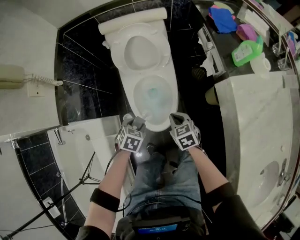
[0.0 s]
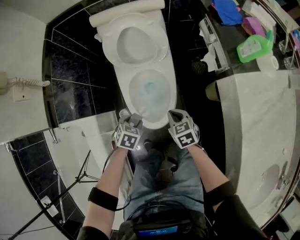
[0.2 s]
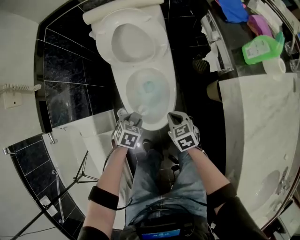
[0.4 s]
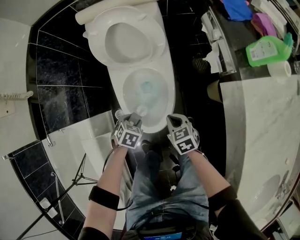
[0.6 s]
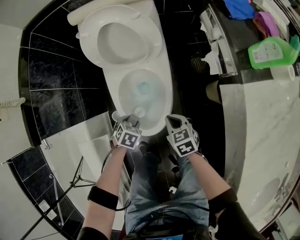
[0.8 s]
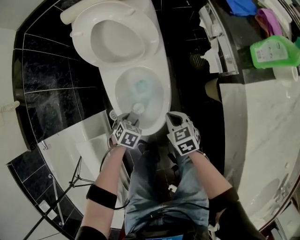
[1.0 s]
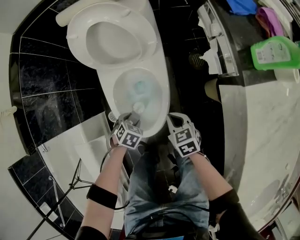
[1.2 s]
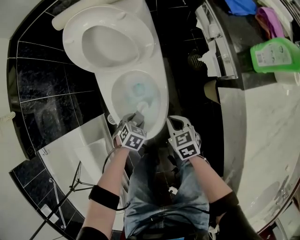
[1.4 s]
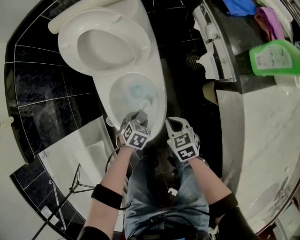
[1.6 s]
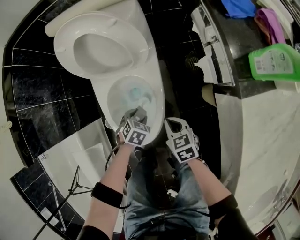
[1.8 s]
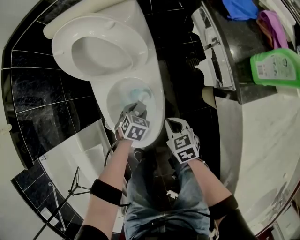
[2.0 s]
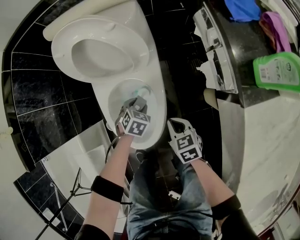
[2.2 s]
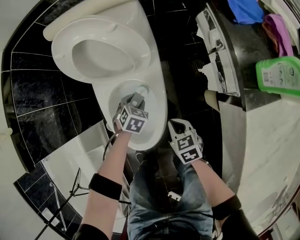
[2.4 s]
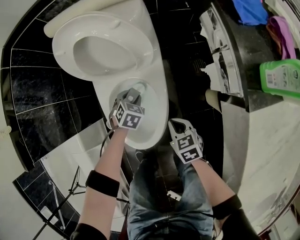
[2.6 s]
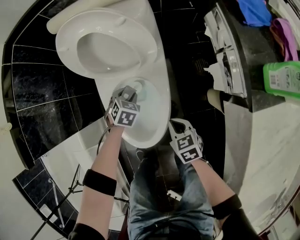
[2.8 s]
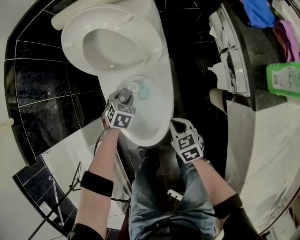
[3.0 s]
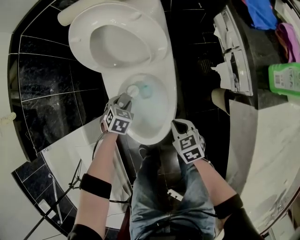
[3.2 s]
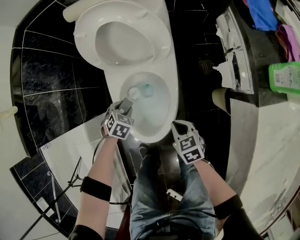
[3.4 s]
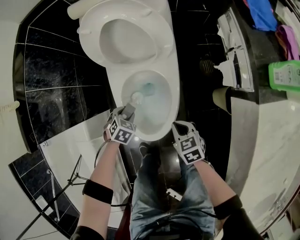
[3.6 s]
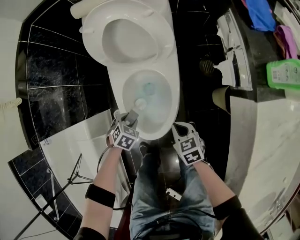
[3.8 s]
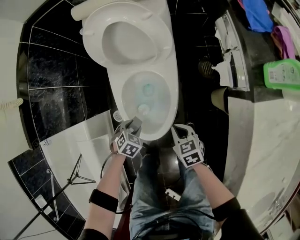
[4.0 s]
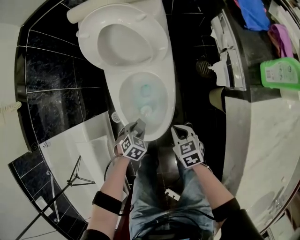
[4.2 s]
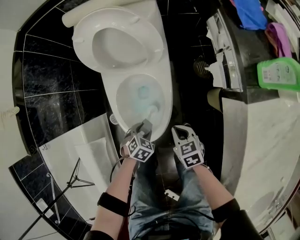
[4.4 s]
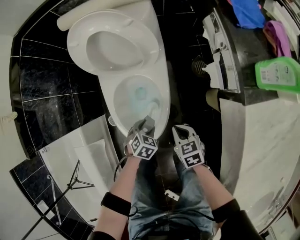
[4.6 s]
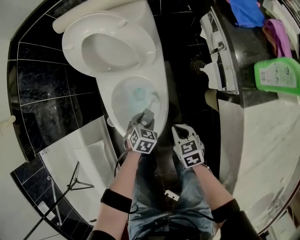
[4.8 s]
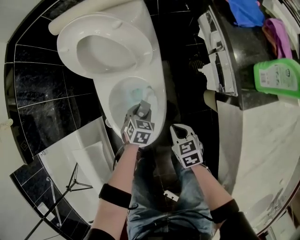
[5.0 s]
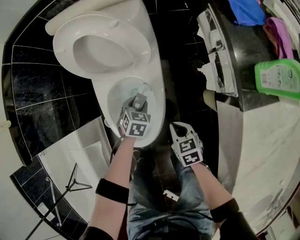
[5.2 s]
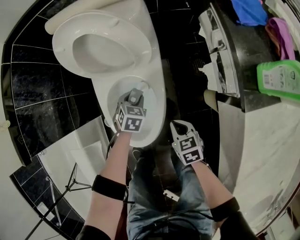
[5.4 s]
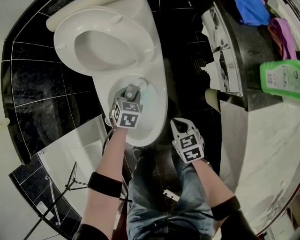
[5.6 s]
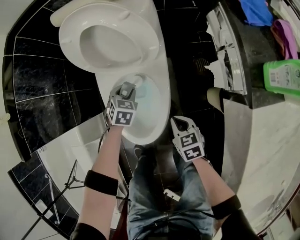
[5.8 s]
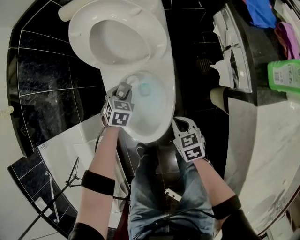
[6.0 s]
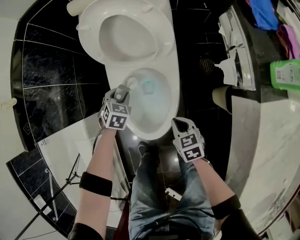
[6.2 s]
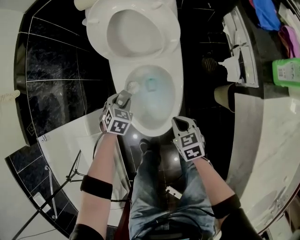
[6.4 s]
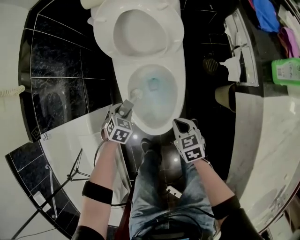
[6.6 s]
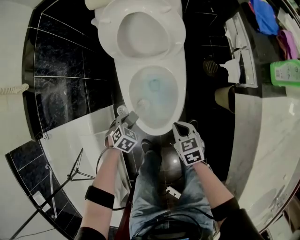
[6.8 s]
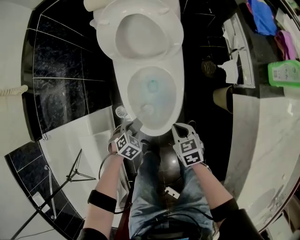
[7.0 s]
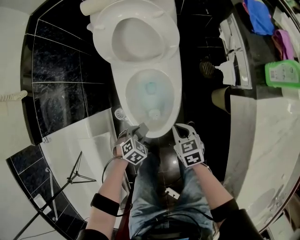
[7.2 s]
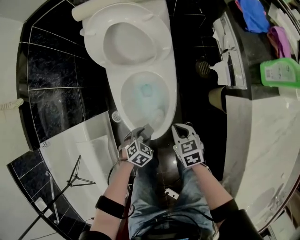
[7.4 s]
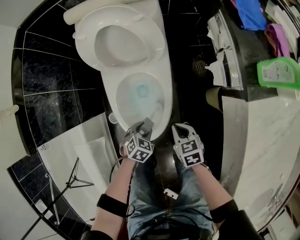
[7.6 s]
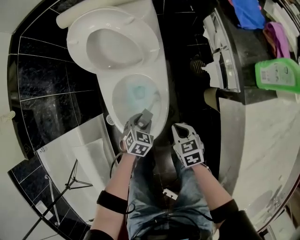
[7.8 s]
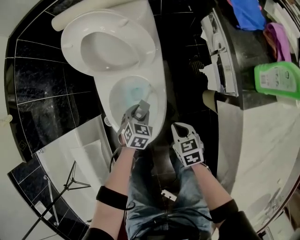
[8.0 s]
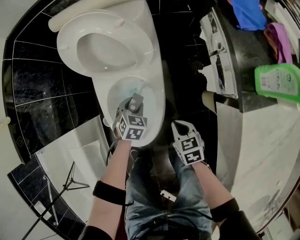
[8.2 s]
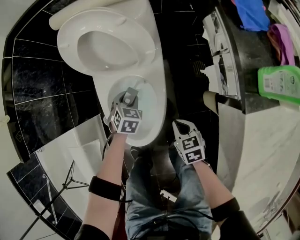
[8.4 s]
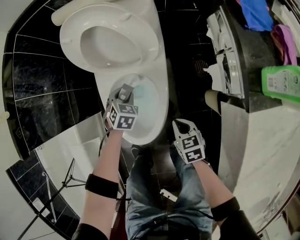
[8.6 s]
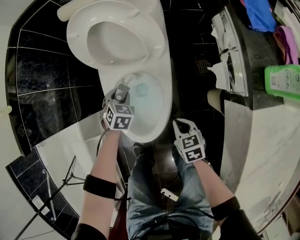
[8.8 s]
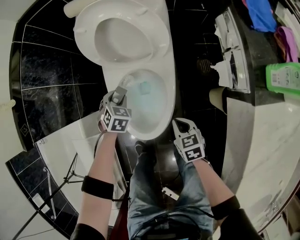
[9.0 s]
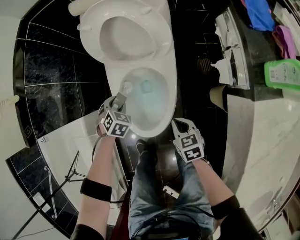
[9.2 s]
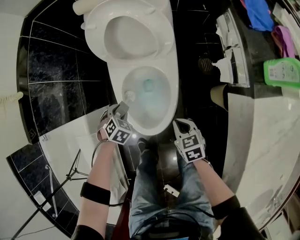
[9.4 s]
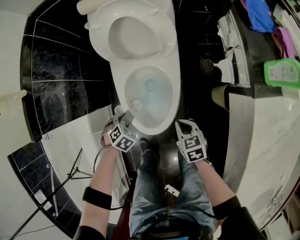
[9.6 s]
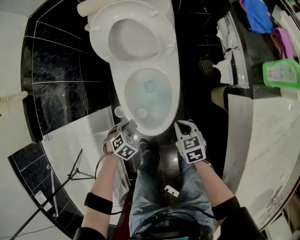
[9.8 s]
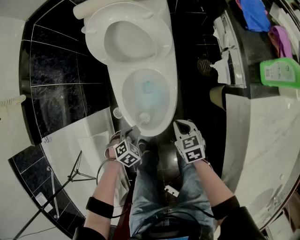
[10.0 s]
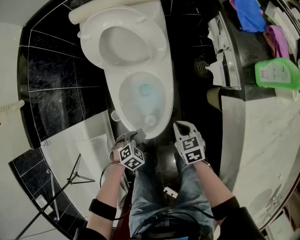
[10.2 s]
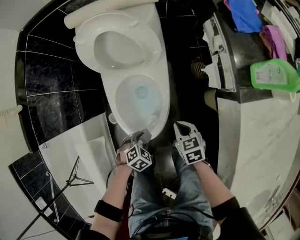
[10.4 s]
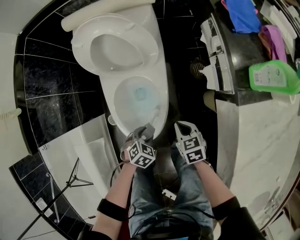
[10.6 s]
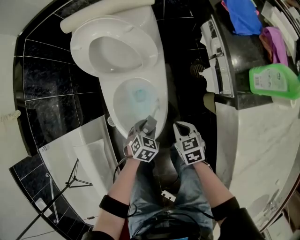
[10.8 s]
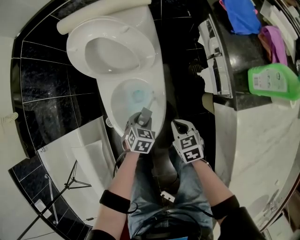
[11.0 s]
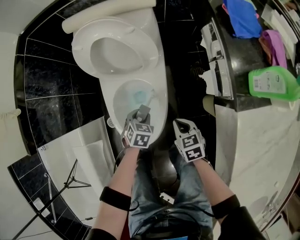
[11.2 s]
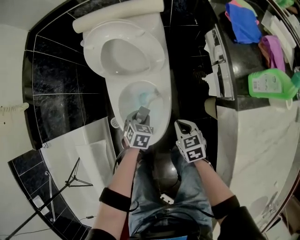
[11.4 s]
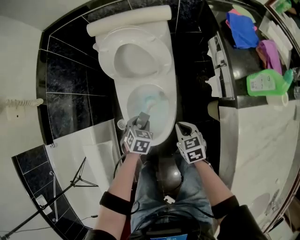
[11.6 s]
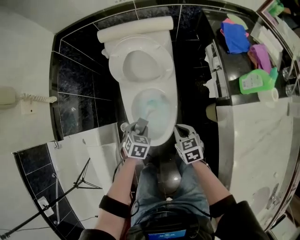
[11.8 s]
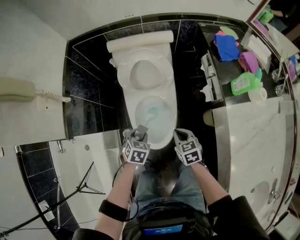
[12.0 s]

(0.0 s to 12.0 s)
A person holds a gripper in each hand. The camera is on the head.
0.0 s - 1.6 s: Both grippers move downward, approximately 20 cm.
1.6 s - 3.0 s: The left gripper is displaced forward and to the left by about 15 cm.
3.0 s - 4.4 s: The left gripper shifts by roughly 20 cm, while the right gripper moves roughly 5 cm.
4.4 s - 6.0 s: The left gripper moves forward, about 20 cm.
6.0 s - 7.6 s: The left gripper ends up about 20 cm from where it was.
7.6 s - 9.0 s: The left gripper ends up some 20 cm from where it was, and turns by roughly 20 degrees.
9.0 s - 10.4 s: The left gripper shifts by some 25 cm, and rotates some 30 degrees.
10.4 s - 12.0 s: The left gripper moves upward, forward and to the left, roughly 25 cm, and changes its angle by about 30 degrees, while the right gripper heads upward and to the left, covering some 15 cm.

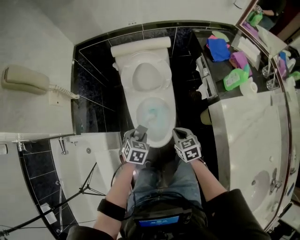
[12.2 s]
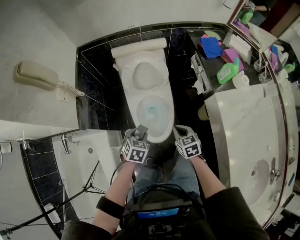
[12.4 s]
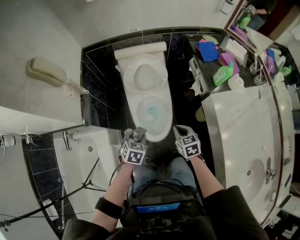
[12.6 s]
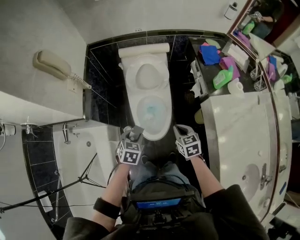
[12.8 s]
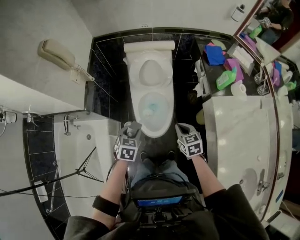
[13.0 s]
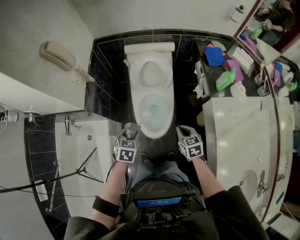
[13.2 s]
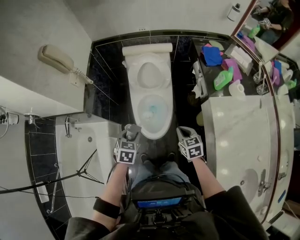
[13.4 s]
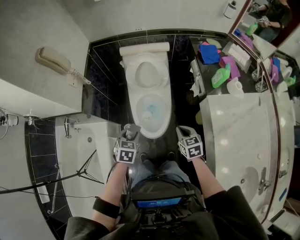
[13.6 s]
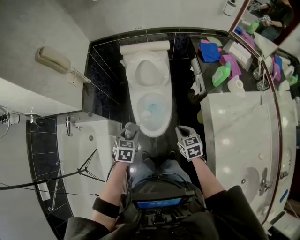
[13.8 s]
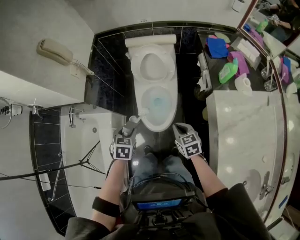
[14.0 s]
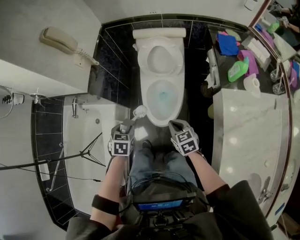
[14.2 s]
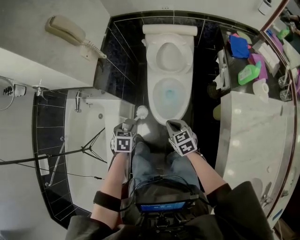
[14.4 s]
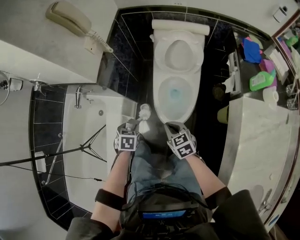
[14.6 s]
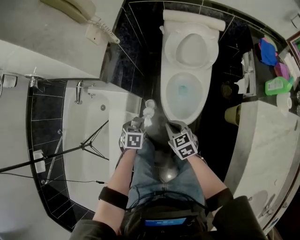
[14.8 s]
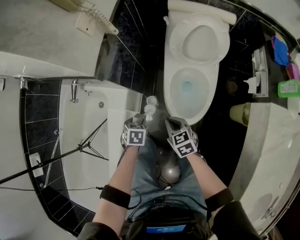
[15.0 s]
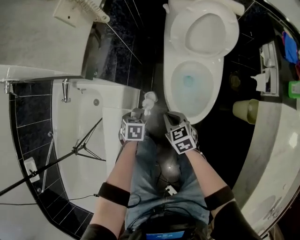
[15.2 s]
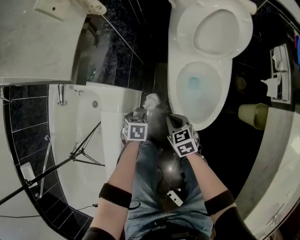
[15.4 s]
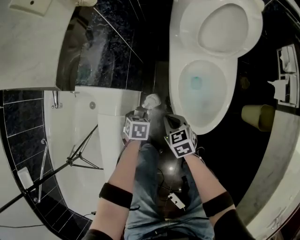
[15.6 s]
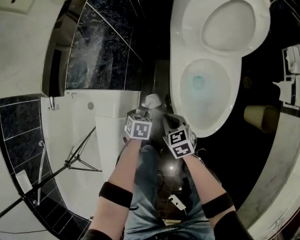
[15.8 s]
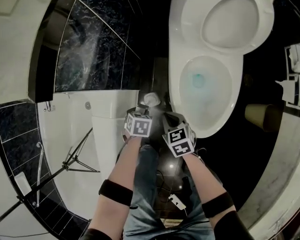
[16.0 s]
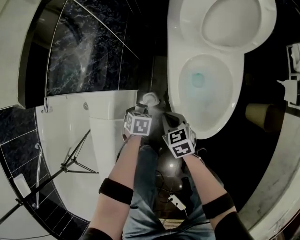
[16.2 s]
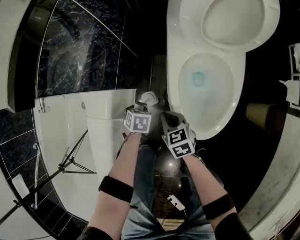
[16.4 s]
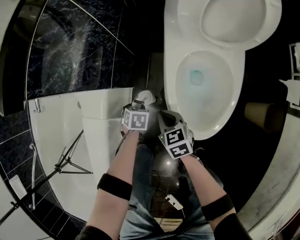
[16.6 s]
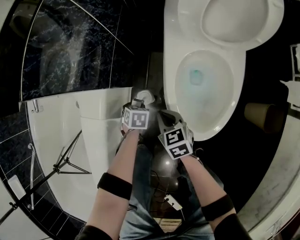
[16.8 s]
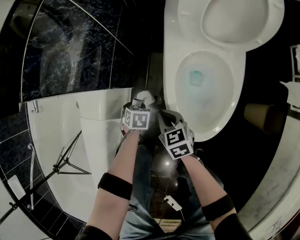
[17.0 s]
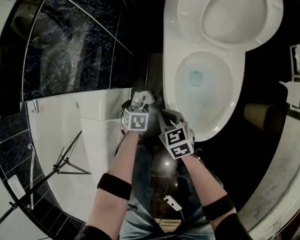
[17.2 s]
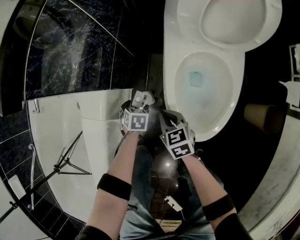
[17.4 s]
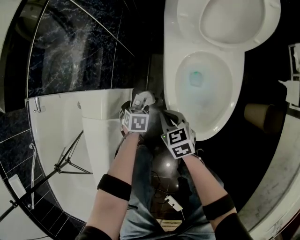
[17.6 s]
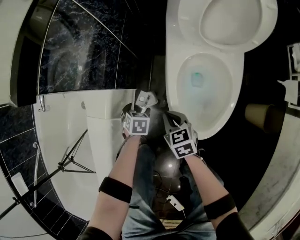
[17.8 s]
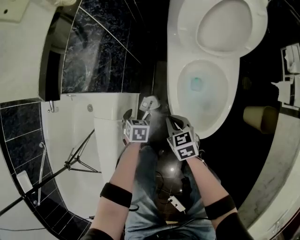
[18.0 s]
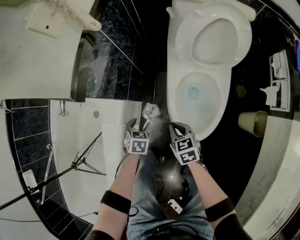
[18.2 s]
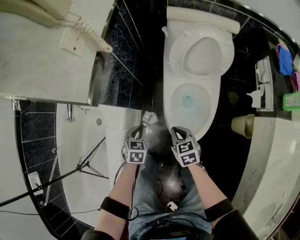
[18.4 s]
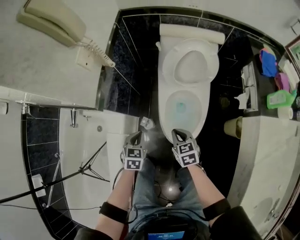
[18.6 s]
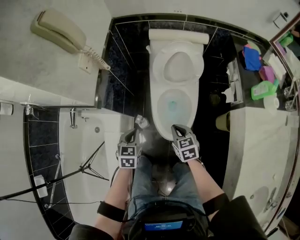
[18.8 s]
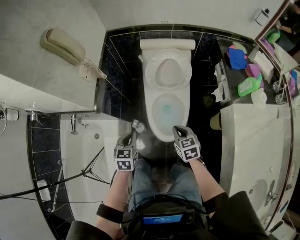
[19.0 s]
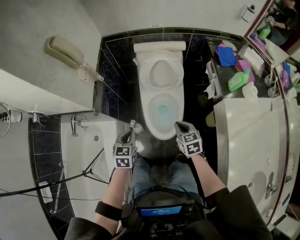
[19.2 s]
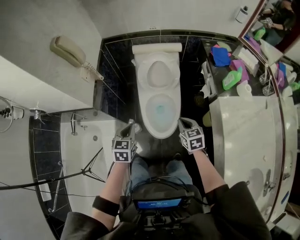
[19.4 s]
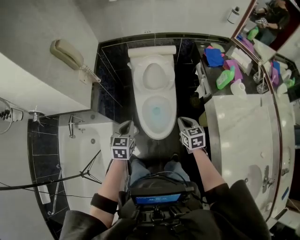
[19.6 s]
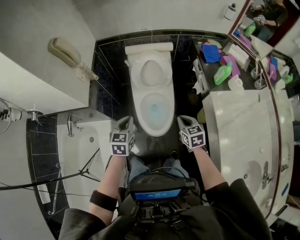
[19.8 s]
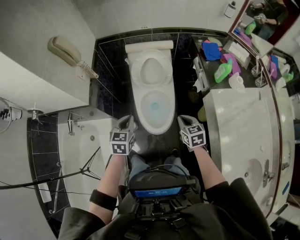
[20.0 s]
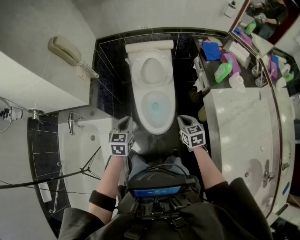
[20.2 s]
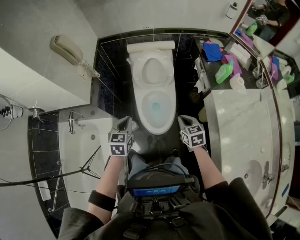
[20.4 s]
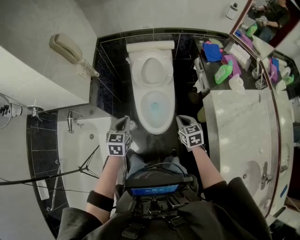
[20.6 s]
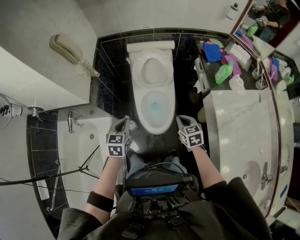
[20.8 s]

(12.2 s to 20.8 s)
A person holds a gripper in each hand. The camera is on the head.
12.2 s - 13.6 s: The right gripper travels upward, backward and to the right by approximately 15 cm, while the left gripper moves upward and backward, some 15 cm.
13.6 s - 15.0 s: The left gripper travels downward and to the left by approximately 35 cm, and changes its angle by approximately 30 degrees. Meanwhile the right gripper goes approximately 35 cm to the left and downward, and changes its angle by about 30 degrees.
15.0 s - 16.6 s: Both grippers move downward, about 30 cm.
16.6 s - 18.0 s: The left gripper shifts some 10 cm upward, and opens up; the right gripper moves upward, approximately 5 cm.
18.0 s - 19.4 s: The right gripper is displaced upward and to the right by roughly 50 cm, and turns by approximately 20 degrees. The left gripper heads upward, covering about 50 cm, angles its fingers upward, by about 30 degrees, and closes.
19.4 s - 20.8 s: There are only small adjustments of the grippers.

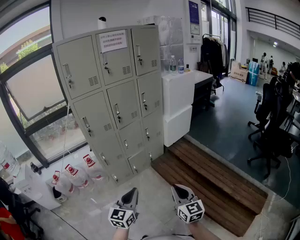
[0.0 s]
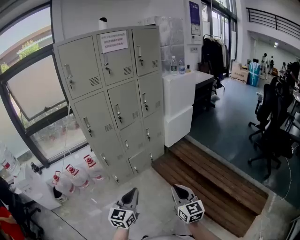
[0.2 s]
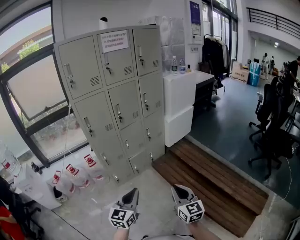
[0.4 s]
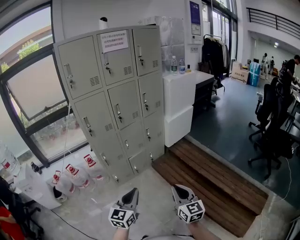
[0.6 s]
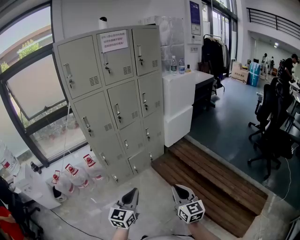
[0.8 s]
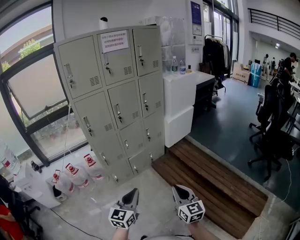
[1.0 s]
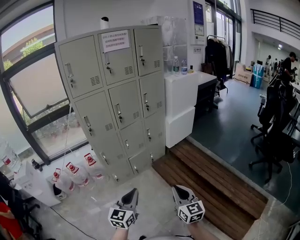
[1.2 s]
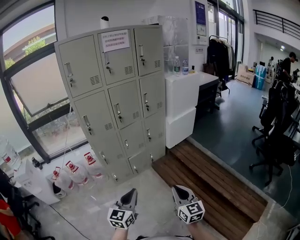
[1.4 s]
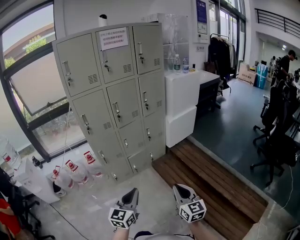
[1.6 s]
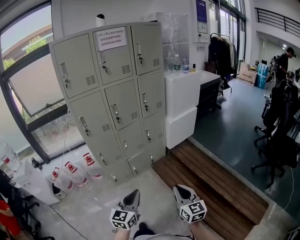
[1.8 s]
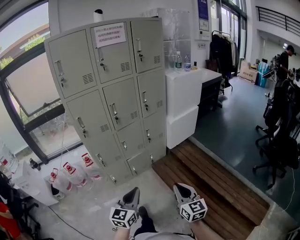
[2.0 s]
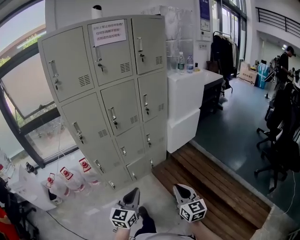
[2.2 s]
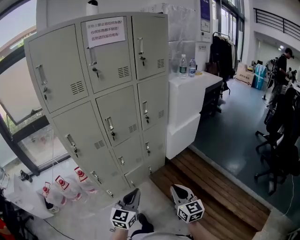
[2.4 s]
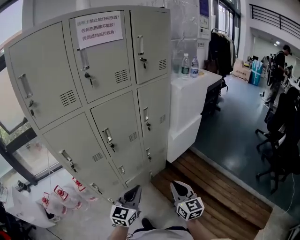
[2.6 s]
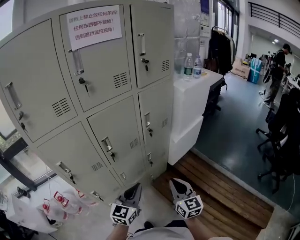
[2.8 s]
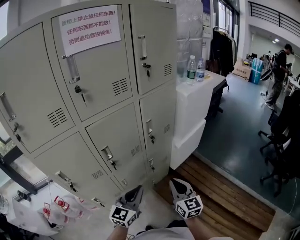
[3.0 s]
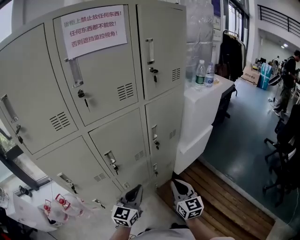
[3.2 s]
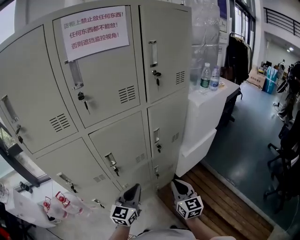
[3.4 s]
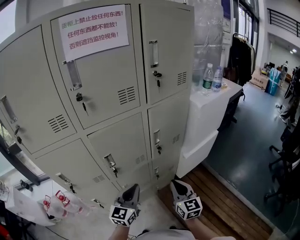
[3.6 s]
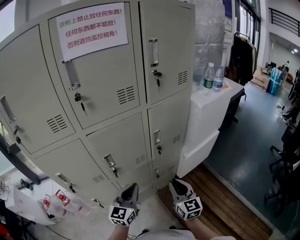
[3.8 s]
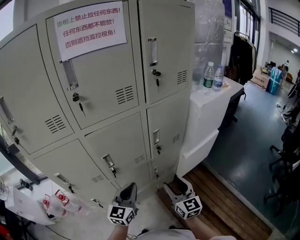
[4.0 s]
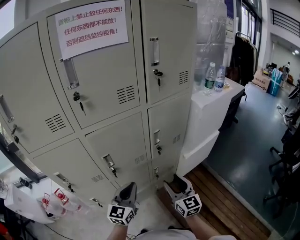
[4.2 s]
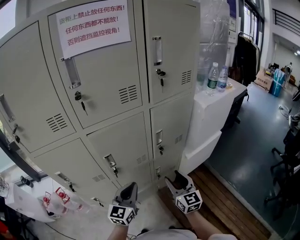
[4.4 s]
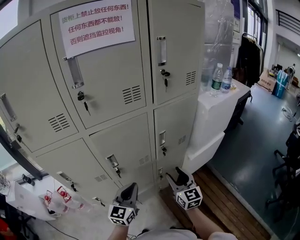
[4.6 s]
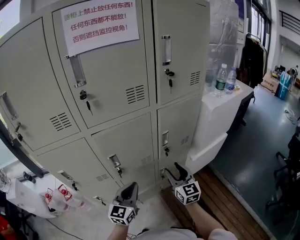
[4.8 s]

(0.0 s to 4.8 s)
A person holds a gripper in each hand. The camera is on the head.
0.0 s - 1.6 s: Both grippers move to the right, about 5 cm.
1.6 s - 3.2 s: The pair of grippers is taken forward, approximately 60 cm.
3.2 s - 4.8 s: The left gripper travels forward by roughly 5 cm; the right gripper heads forward, covering about 15 cm, and opens.
